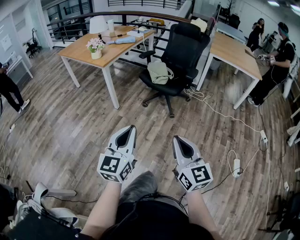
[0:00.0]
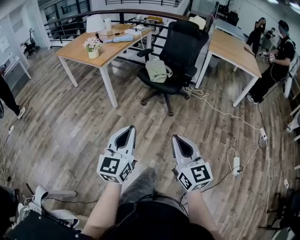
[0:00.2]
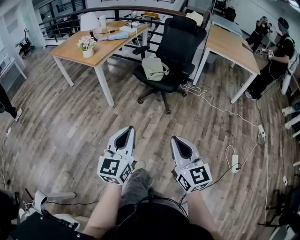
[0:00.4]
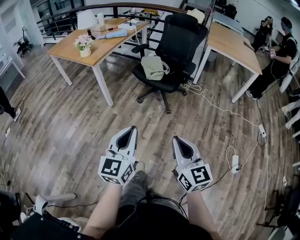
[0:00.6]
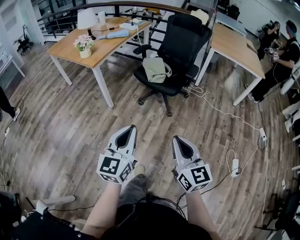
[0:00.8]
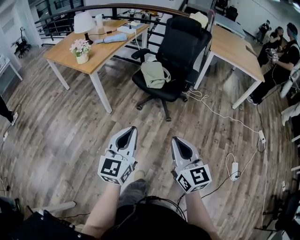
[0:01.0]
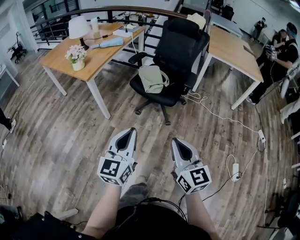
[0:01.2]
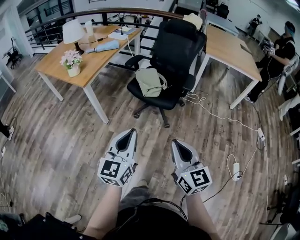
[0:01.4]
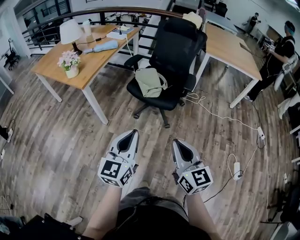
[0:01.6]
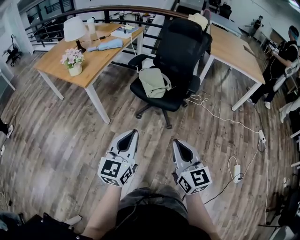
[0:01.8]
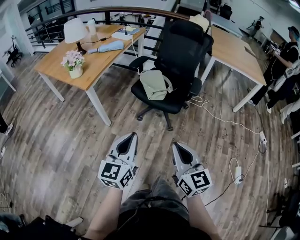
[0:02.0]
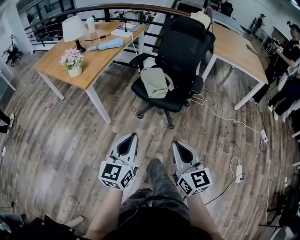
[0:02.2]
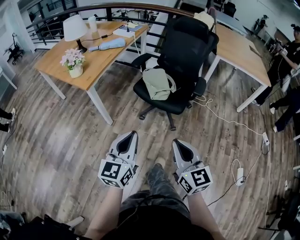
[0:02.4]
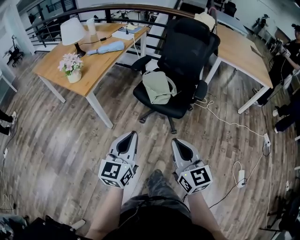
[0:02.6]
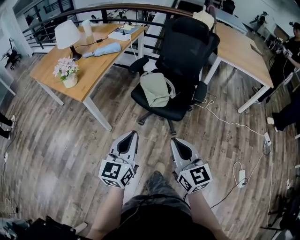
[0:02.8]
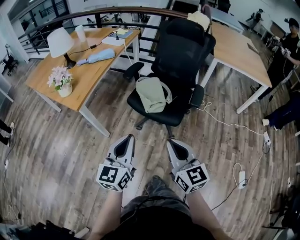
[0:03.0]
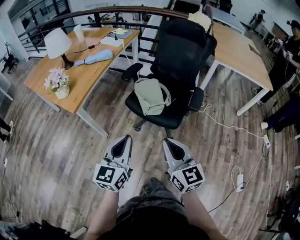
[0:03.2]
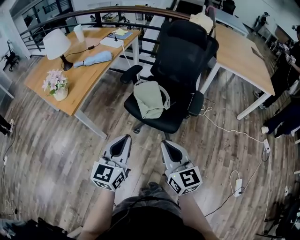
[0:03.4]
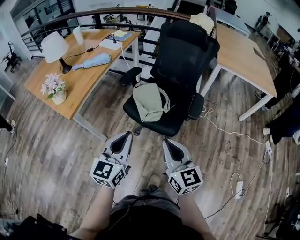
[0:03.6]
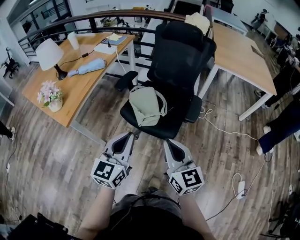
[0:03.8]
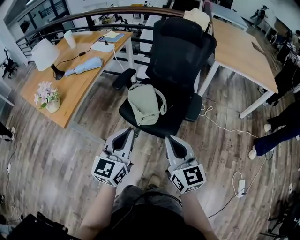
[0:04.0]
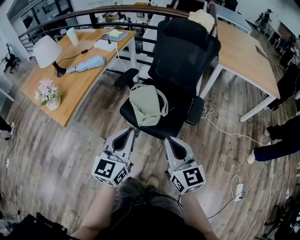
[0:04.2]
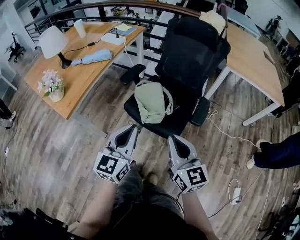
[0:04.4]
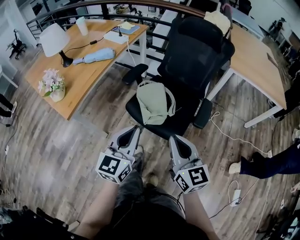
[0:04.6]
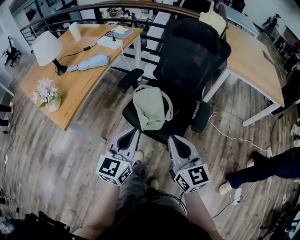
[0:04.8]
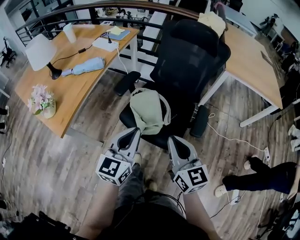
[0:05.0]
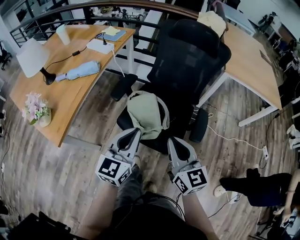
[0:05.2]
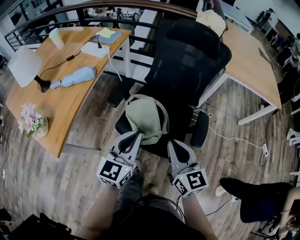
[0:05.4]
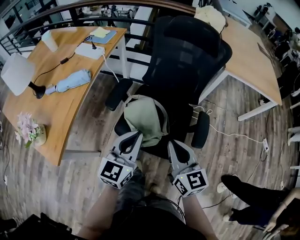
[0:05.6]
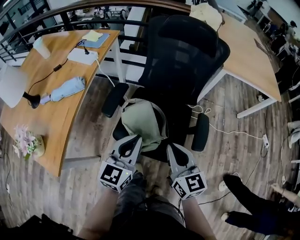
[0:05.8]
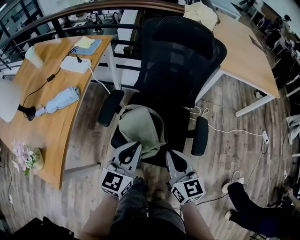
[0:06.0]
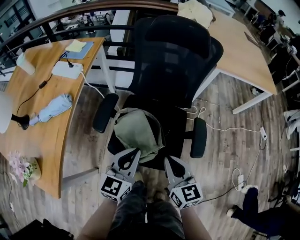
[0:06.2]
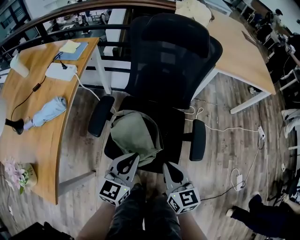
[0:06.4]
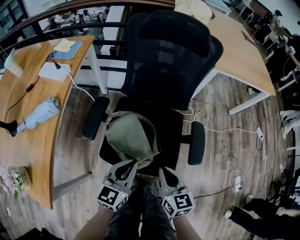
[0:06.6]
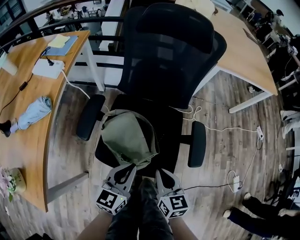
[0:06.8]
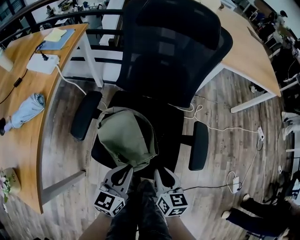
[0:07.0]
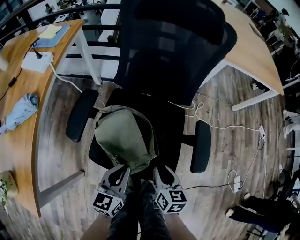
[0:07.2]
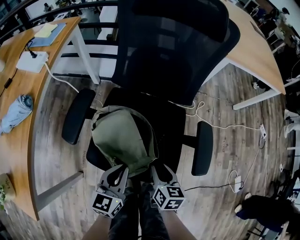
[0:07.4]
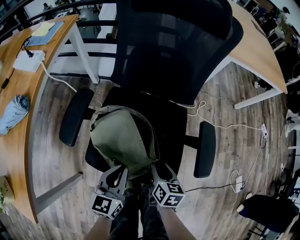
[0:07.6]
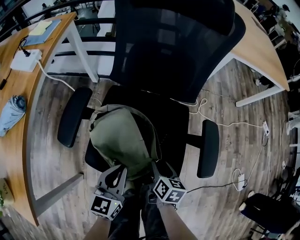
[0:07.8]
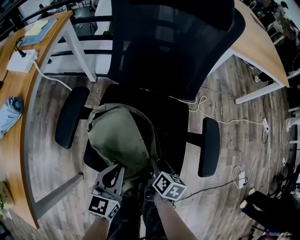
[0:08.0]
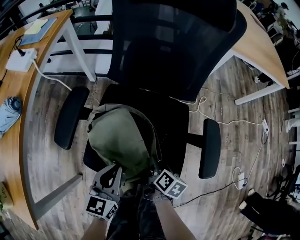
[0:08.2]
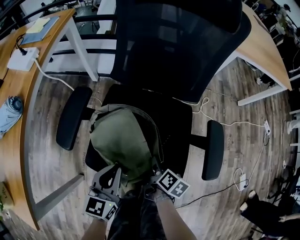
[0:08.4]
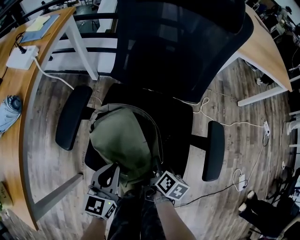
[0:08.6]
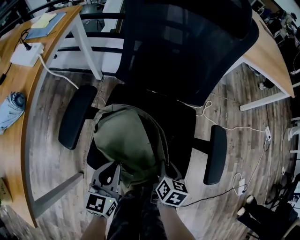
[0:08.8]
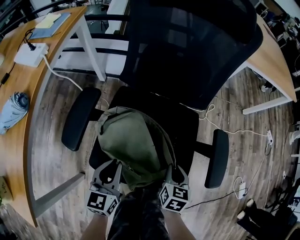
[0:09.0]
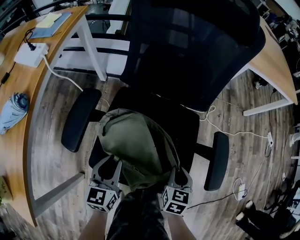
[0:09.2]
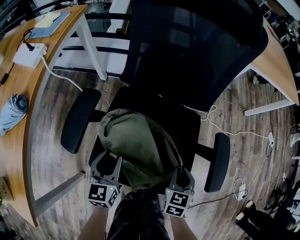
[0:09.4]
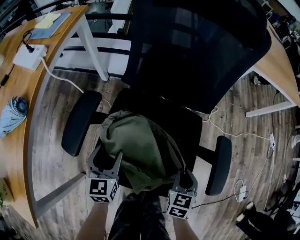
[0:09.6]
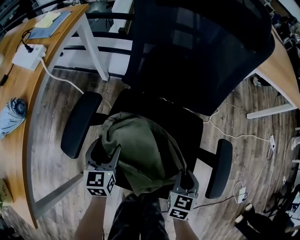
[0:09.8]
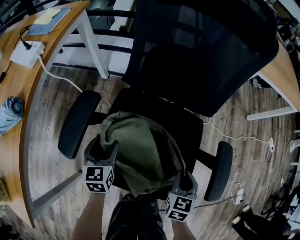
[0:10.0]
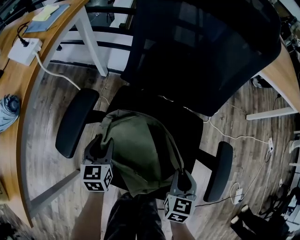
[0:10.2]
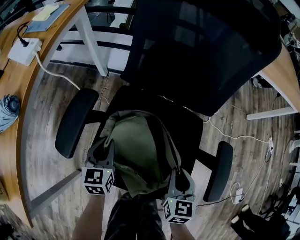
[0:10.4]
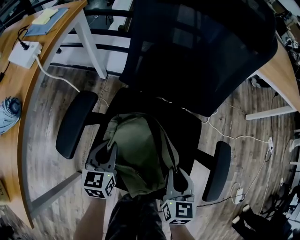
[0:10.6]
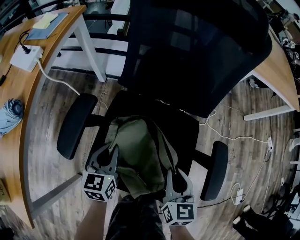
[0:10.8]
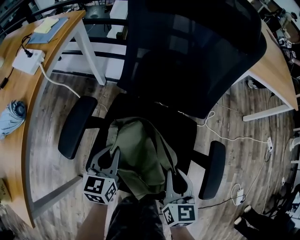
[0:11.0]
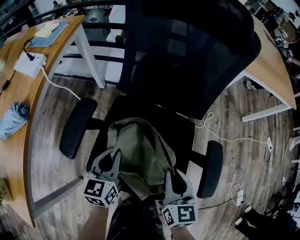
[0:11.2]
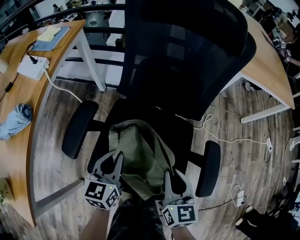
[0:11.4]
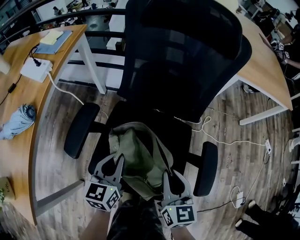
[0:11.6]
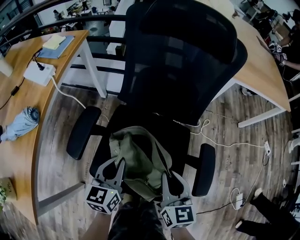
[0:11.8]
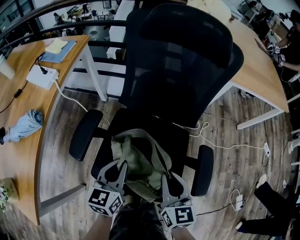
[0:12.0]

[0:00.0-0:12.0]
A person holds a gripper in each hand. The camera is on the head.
0.0 to 1.6 s: Both grippers travel together forward, roughly 25 cm.
1.6 to 3.0 s: The two grippers go some 15 cm forward.
3.0 to 4.4 s: Both grippers travel together forward and to the right, approximately 15 cm.
4.4 to 6.0 s: The two grippers go some 20 cm forward.
6.0 to 7.6 s: Both grippers move downward, roughly 25 cm. The right gripper swivels about 40 degrees, and opens.
7.6 to 9.0 s: The right gripper closes; the left gripper moves to the left, some 5 cm.
9.0 to 10.4 s: The left gripper shifts roughly 10 cm forward, downward and to the left, and opens, then closes again. The right gripper shifts by some 5 cm.
10.4 to 12.0 s: The right gripper shifts some 15 cm upward. Meanwhile the left gripper goes approximately 15 cm upward and to the right.

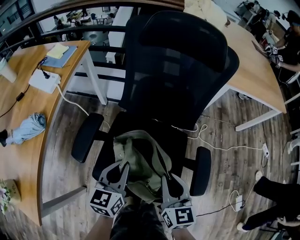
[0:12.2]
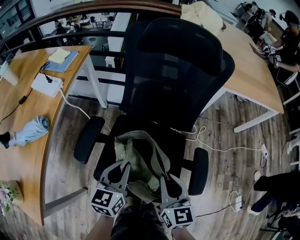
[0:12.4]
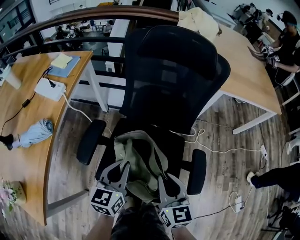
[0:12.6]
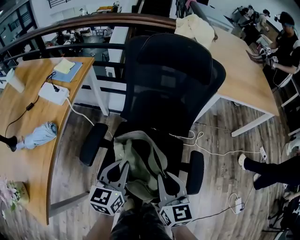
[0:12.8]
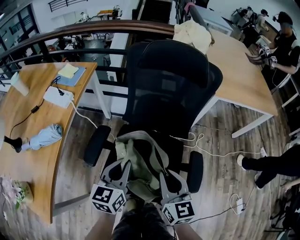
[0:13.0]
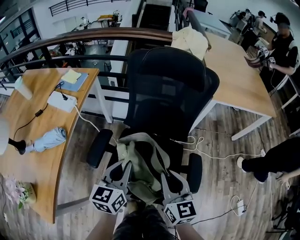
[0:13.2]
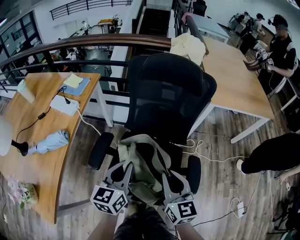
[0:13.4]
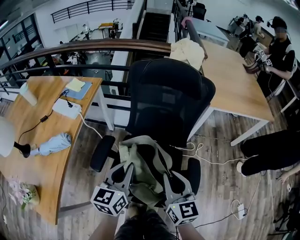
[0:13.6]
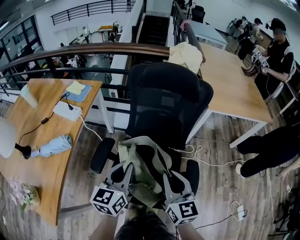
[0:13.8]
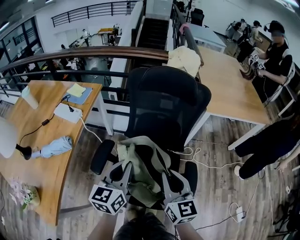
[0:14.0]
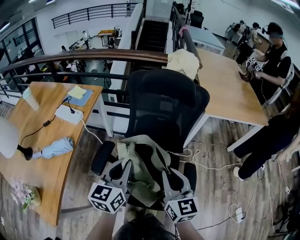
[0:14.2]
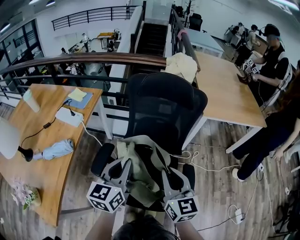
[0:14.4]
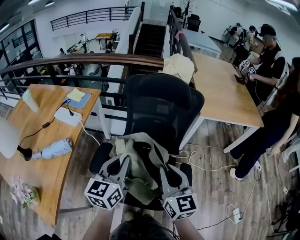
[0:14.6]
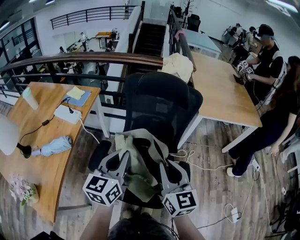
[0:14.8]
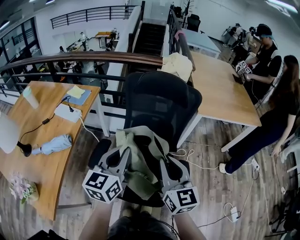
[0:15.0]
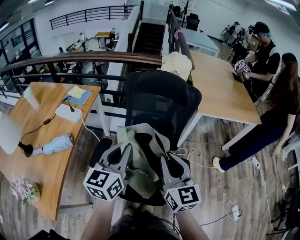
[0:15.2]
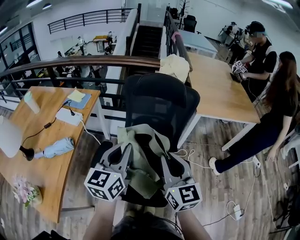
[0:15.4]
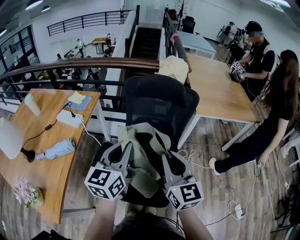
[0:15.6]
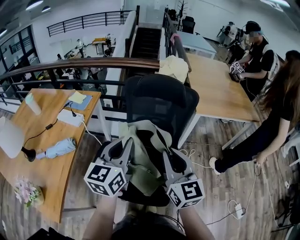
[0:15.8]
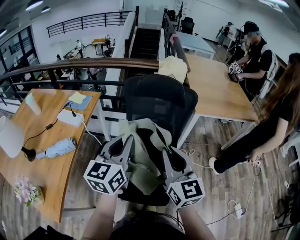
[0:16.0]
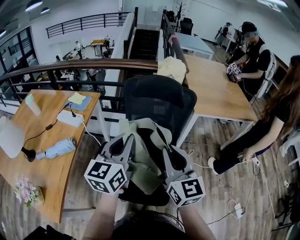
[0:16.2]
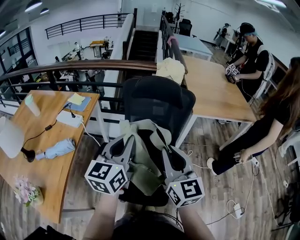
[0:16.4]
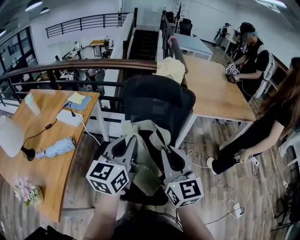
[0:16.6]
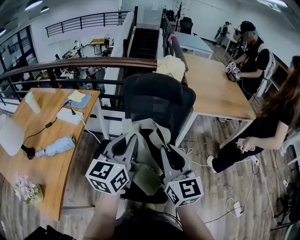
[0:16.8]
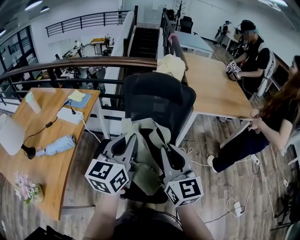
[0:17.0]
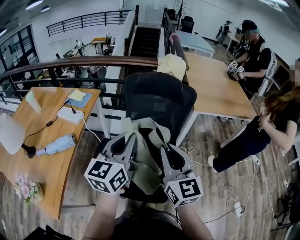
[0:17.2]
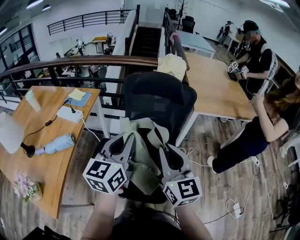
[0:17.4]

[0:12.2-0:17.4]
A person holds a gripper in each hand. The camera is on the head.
12.2 to 14.0 s: The two grippers go some 20 cm upward.
14.0 to 15.6 s: The two grippers go roughly 10 cm upward.
15.6 to 17.4 s: The grippers stay close to where they were, moving slightly.

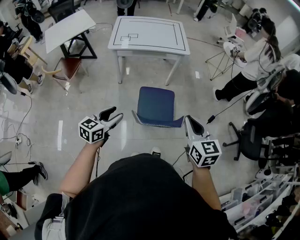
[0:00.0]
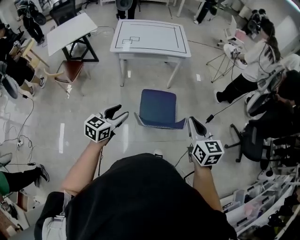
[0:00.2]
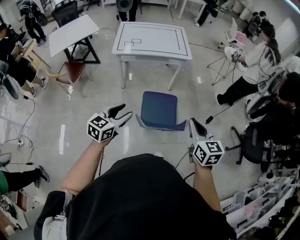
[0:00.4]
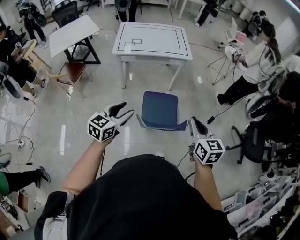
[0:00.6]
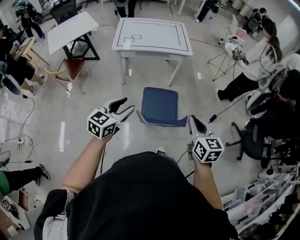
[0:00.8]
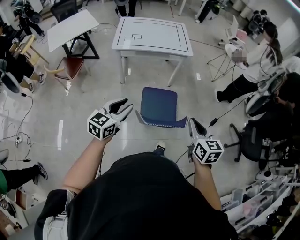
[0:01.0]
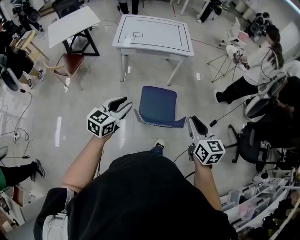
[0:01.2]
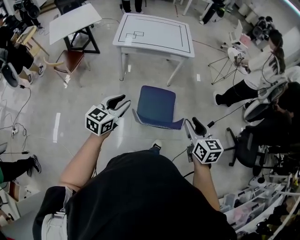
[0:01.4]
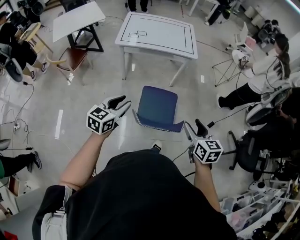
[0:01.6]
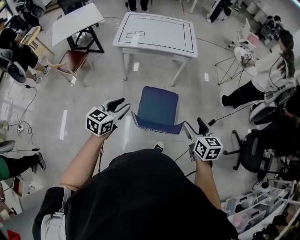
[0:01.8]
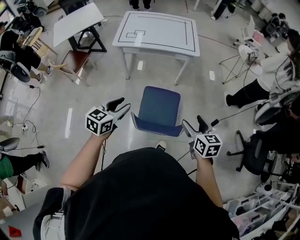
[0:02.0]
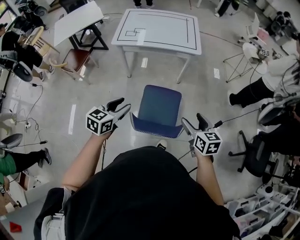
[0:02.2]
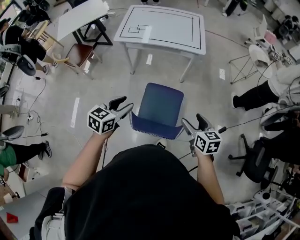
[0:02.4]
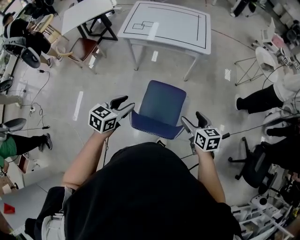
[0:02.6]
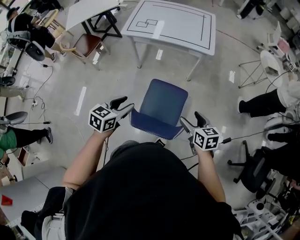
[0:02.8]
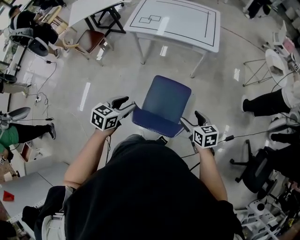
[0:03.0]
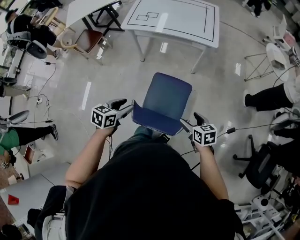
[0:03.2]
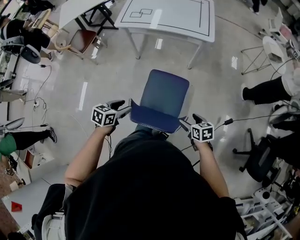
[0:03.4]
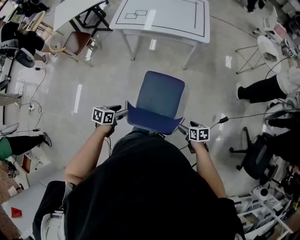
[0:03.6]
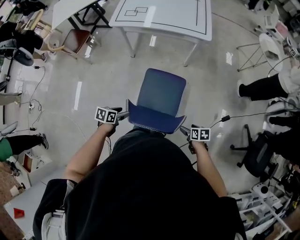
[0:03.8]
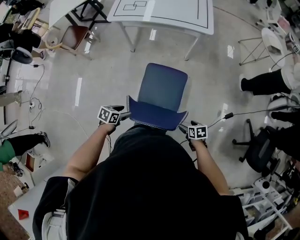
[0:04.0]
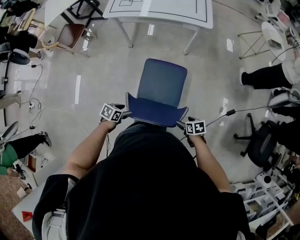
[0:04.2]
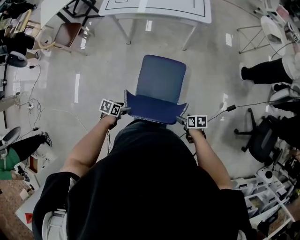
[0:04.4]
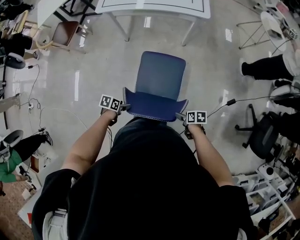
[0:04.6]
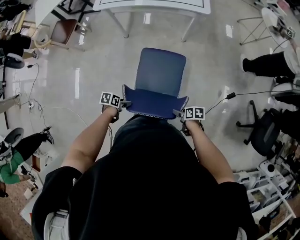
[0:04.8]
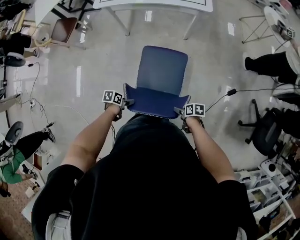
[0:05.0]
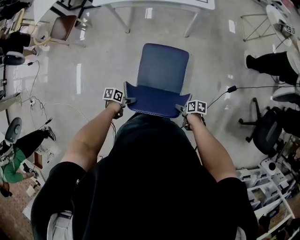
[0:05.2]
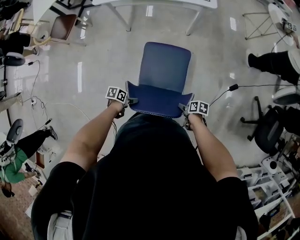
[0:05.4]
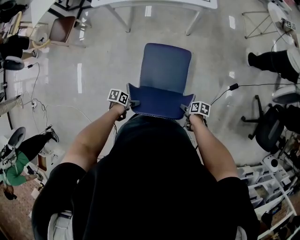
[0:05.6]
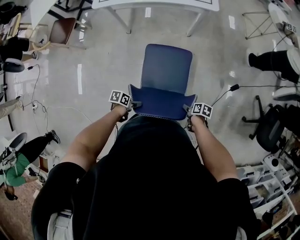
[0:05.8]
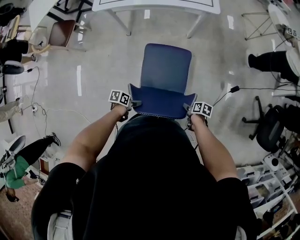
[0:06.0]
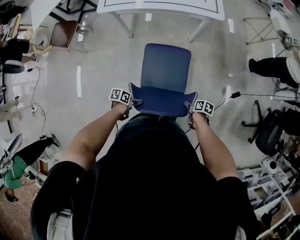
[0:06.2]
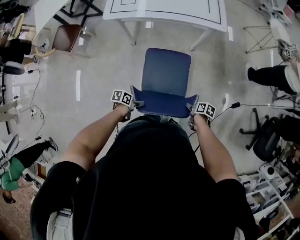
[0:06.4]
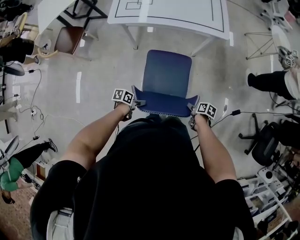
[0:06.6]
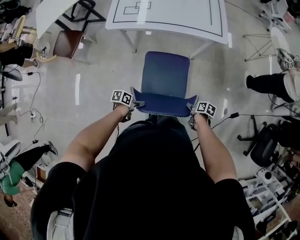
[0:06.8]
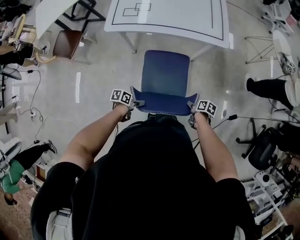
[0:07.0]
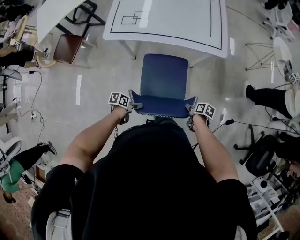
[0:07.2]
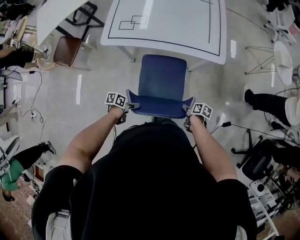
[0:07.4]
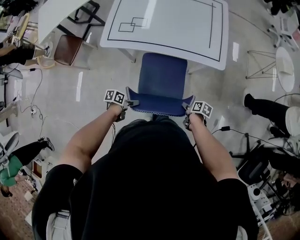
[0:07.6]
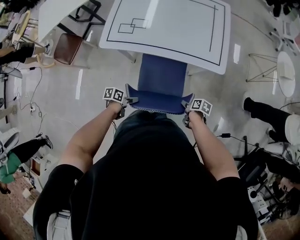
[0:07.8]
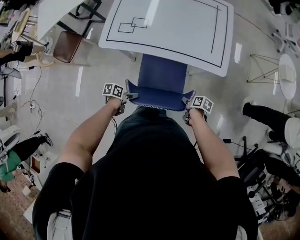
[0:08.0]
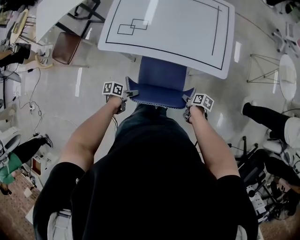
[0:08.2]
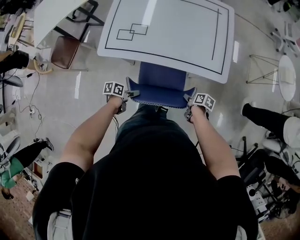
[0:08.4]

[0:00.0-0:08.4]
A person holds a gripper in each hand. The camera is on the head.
0.0 to 1.4 s: The right gripper opens. The left gripper changes place by about 5 cm.
1.4 to 2.8 s: The left gripper moves to the right, forward and downward, approximately 15 cm, and rotates some 20 degrees, while the right gripper travels forward, downward and to the right by about 25 cm, changes its angle by some 20 degrees, and opens its fingers.
2.8 to 4.2 s: Both grippers move downward, some 25 cm. The left gripper turns by roughly 40 degrees, while the right gripper turns by approximately 30 degrees.
4.2 to 5.6 s: The two grippers go approximately 10 cm downward. The right gripper turns by some 40 degrees, and closes its fingers. Meanwhile the left gripper swivels roughly 30 degrees.
5.6 to 7.0 s: The left gripper changes place by roughly 25 cm. Meanwhile the right gripper changes place by roughly 25 cm.
7.0 to 8.4 s: The right gripper shifts by roughly 25 cm, while the left gripper shifts by roughly 25 cm.
